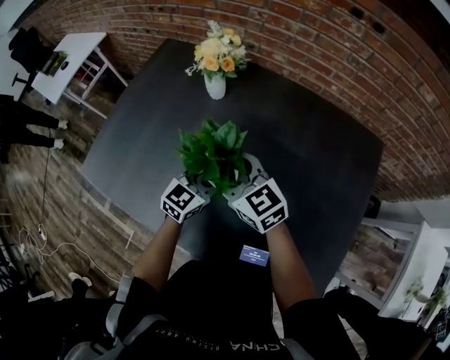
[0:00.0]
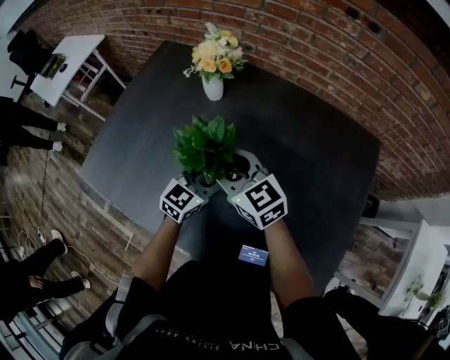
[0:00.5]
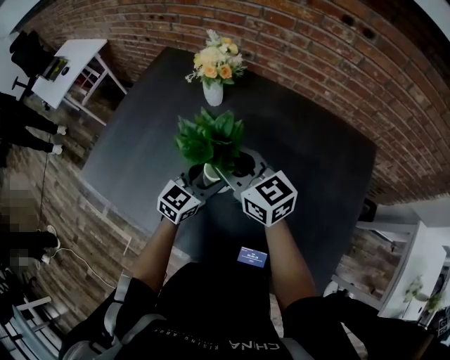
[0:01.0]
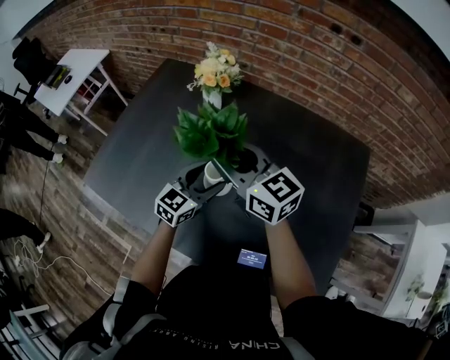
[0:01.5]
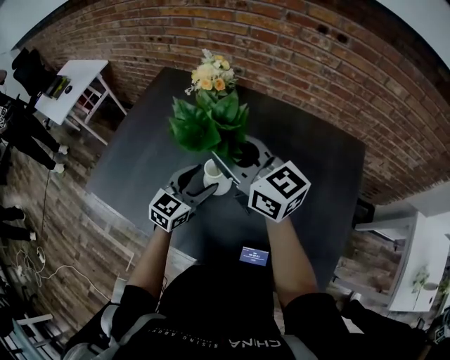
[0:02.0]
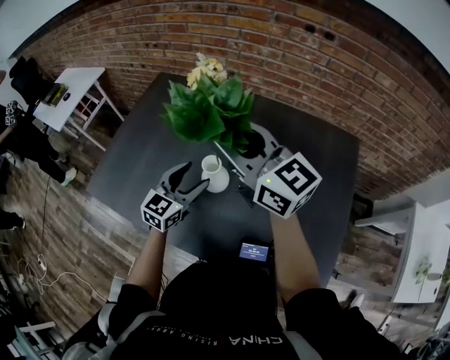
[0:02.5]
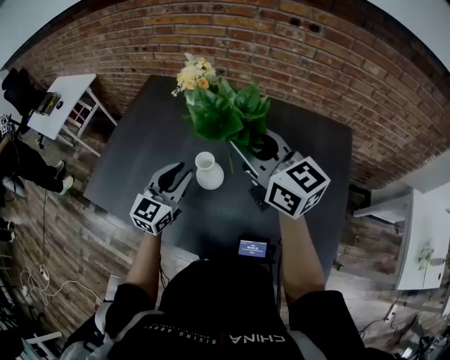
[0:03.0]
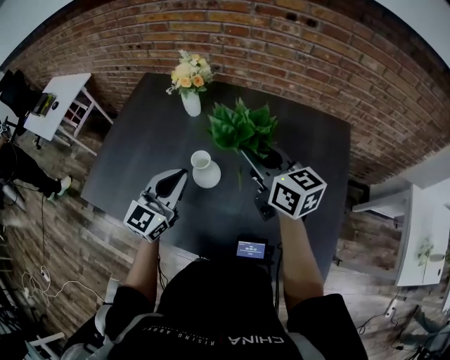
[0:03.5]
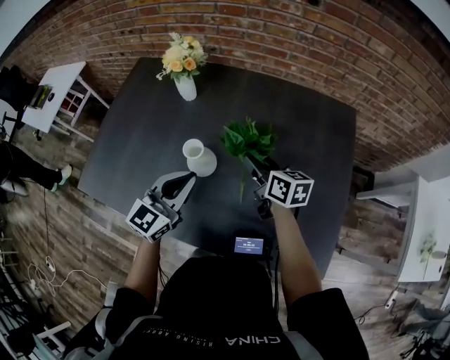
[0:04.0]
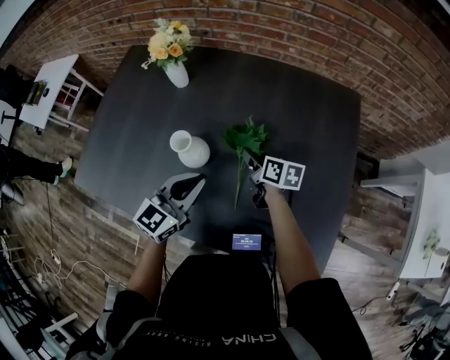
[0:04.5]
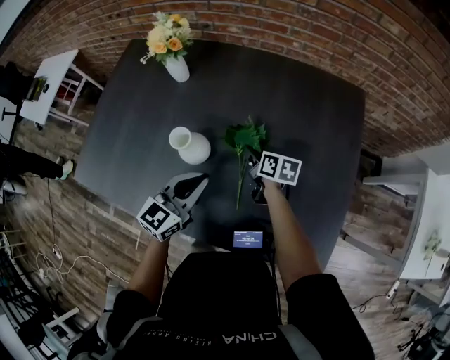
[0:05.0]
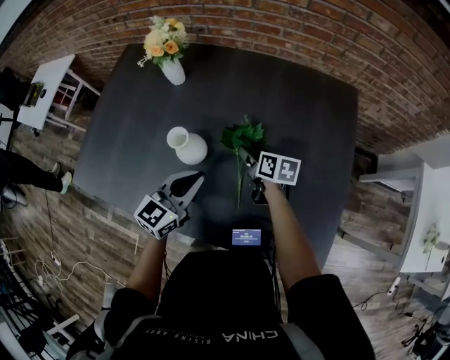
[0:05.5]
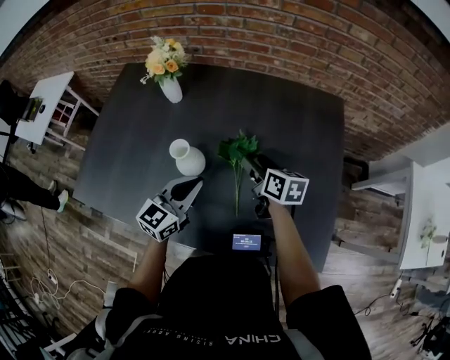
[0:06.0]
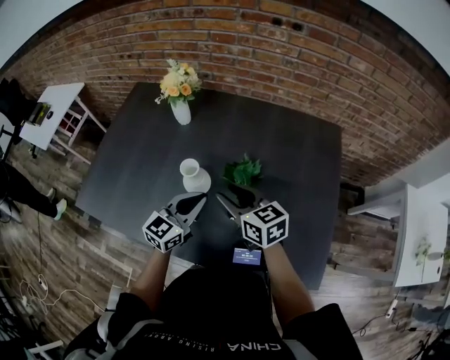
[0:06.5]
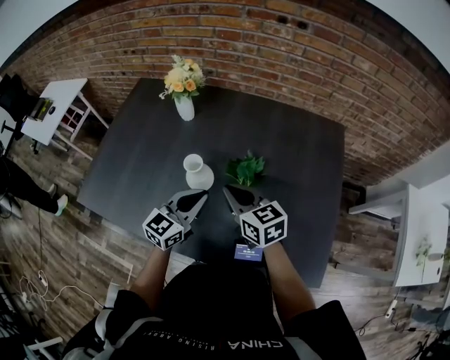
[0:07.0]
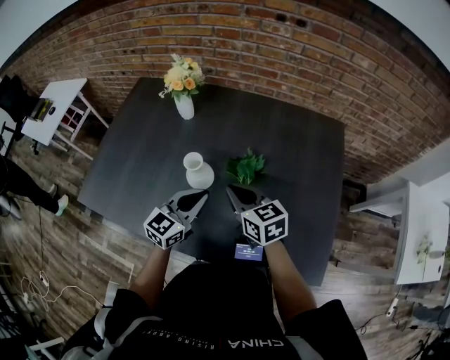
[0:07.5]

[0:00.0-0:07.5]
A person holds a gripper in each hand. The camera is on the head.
0:00.0 to 0:02.0: The left gripper shifts by some 5 cm, while the right gripper shifts approximately 15 cm upward, rotates about 20 degrees, and closes up.
0:02.0 to 0:04.0: The right gripper travels downward and to the right by some 25 cm, and turns by some 40 degrees, while the left gripper goes some 10 cm backward and upward, and closes its fingers.
0:04.0 to 0:05.5: The left gripper is displaced downward by some 5 cm. Meanwhile the right gripper is displaced downward by roughly 10 cm, and opens up.
0:05.5 to 0:07.5: The right gripper shifts some 20 cm upward, backward and to the left, changes its angle by roughly 40 degrees, and closes up.

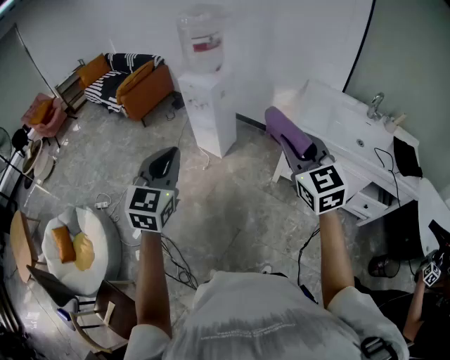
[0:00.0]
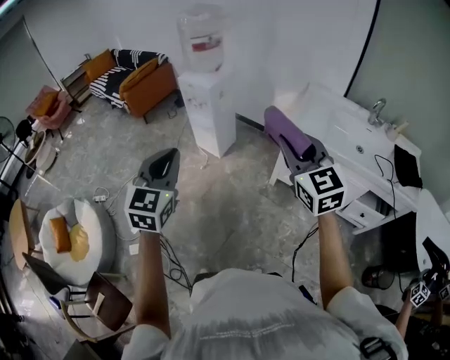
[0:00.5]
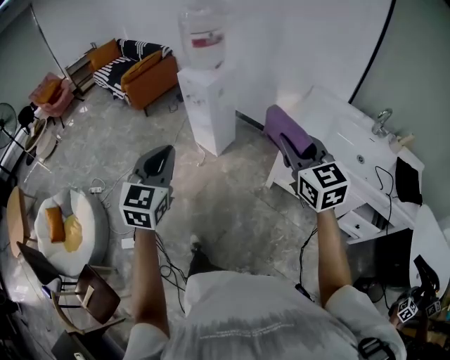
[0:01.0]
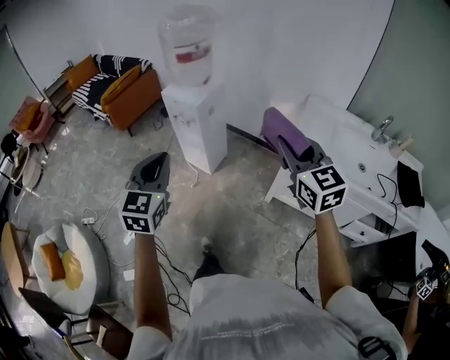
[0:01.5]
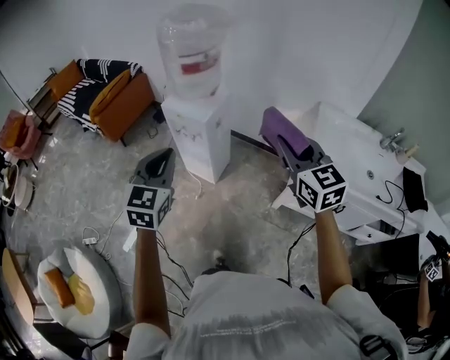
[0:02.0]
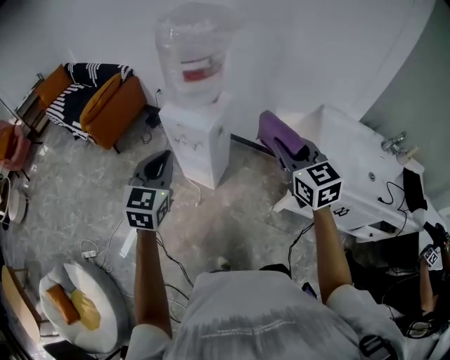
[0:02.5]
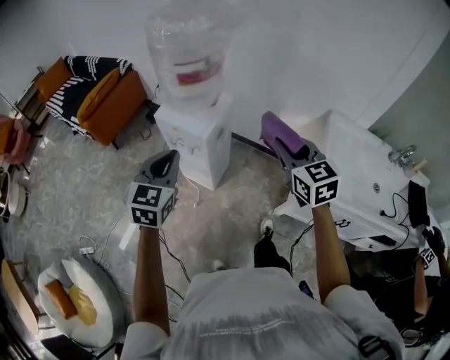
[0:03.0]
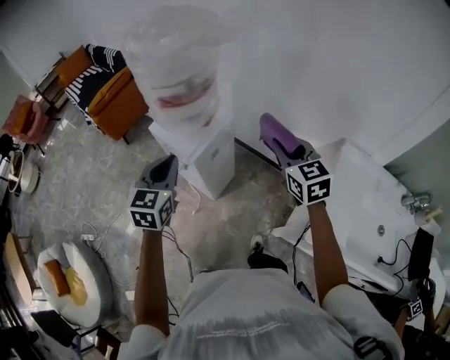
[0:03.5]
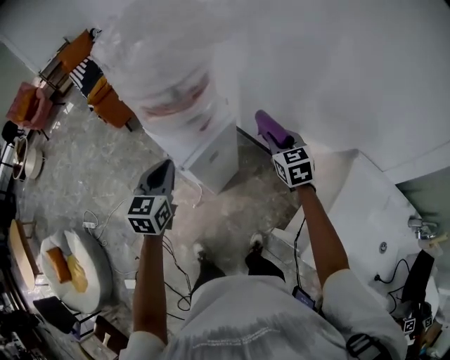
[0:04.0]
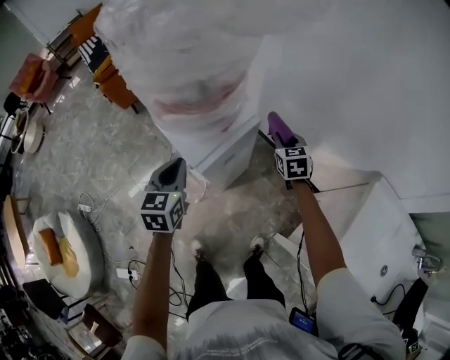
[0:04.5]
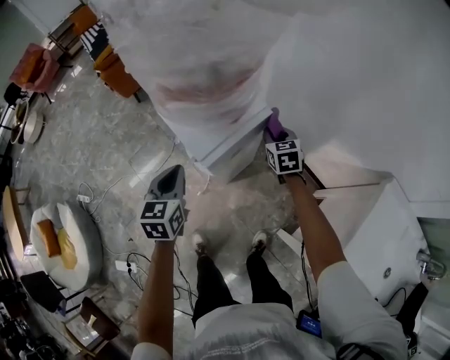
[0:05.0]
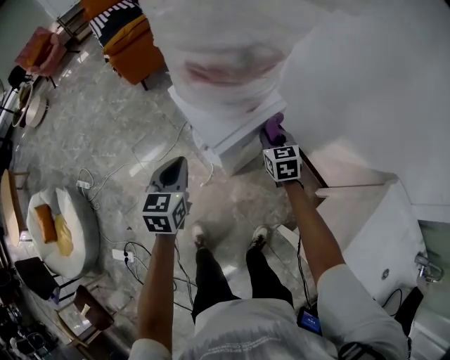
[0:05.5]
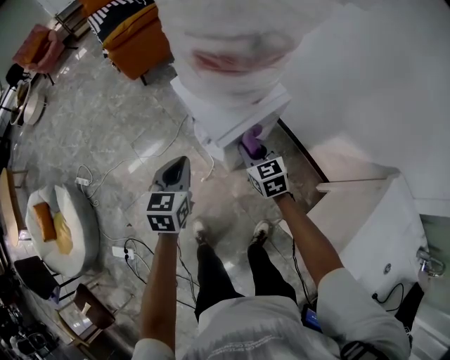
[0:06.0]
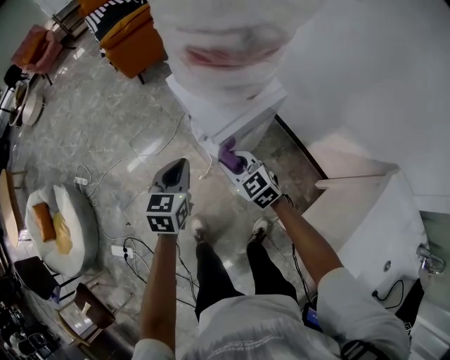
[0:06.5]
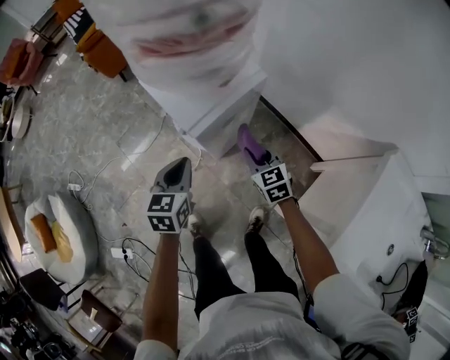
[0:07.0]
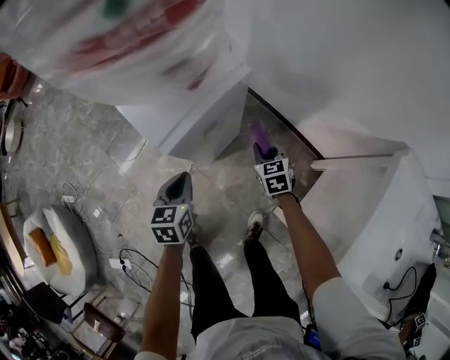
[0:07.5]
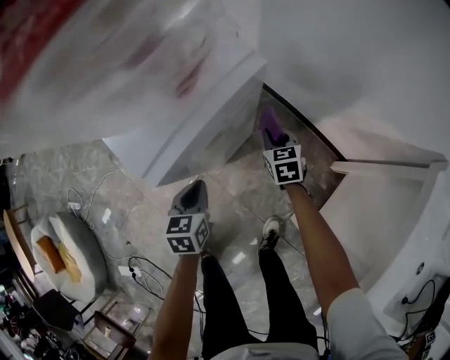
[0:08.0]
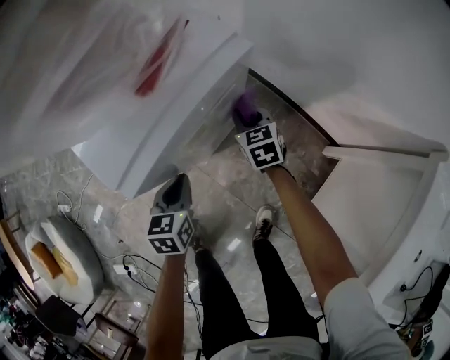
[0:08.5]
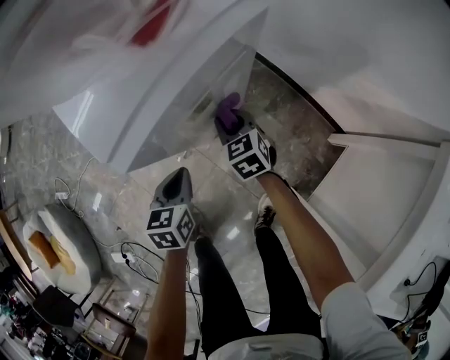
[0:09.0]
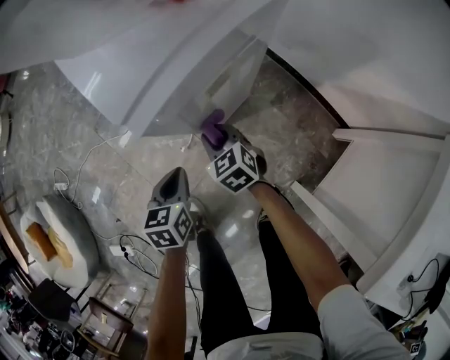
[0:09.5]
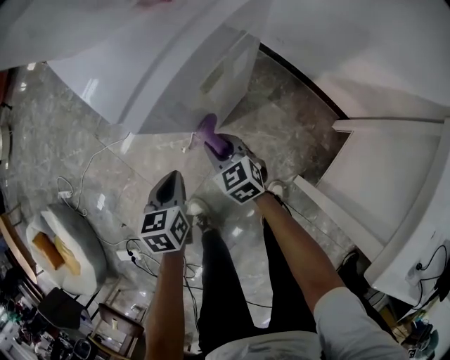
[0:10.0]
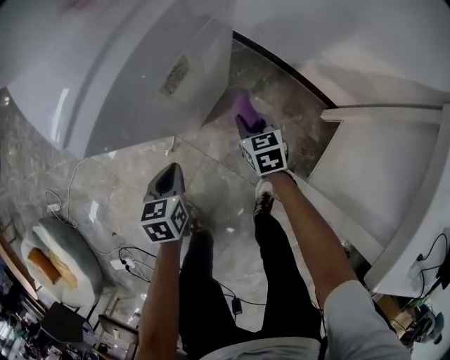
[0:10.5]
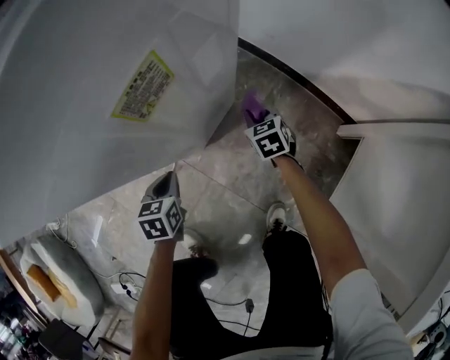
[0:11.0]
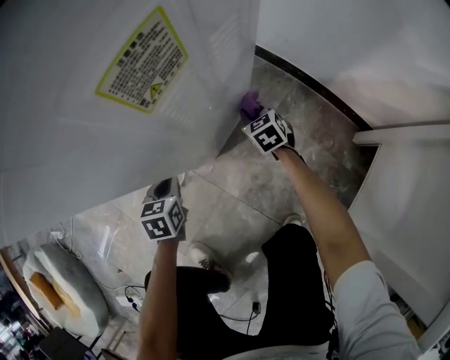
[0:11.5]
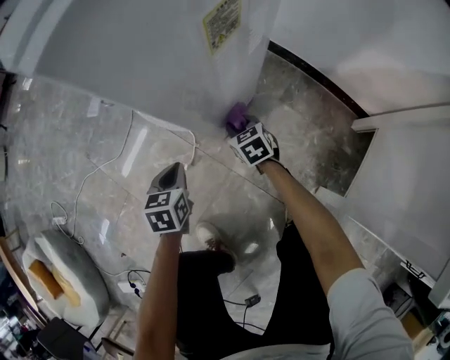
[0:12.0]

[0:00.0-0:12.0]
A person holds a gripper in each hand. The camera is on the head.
0:00.0 to 0:02.0: The grippers both shift forward by some 35 cm.
0:02.0 to 0:04.0: The left gripper moves forward, about 30 cm, and turns by approximately 30 degrees. The right gripper moves forward and downward, roughly 50 cm, and swivels some 20 degrees.
0:04.0 to 0:06.0: The right gripper heads to the left and downward, covering approximately 30 cm. The left gripper moves downward and to the left, roughly 20 cm.
0:06.0 to 0:08.0: Both grippers move downward and to the right, about 30 cm. The right gripper changes its angle by about 20 degrees.
0:08.0 to 0:10.0: The left gripper is displaced to the left and backward by about 10 cm; the right gripper travels to the left and backward by approximately 25 cm, and swivels some 20 degrees.
0:10.0 to 0:12.0: The two grippers go approximately 20 cm downward.

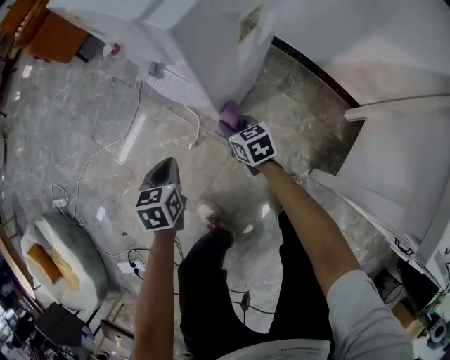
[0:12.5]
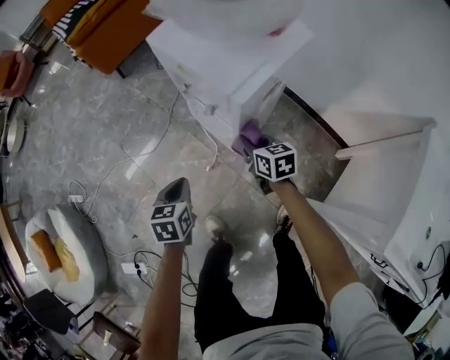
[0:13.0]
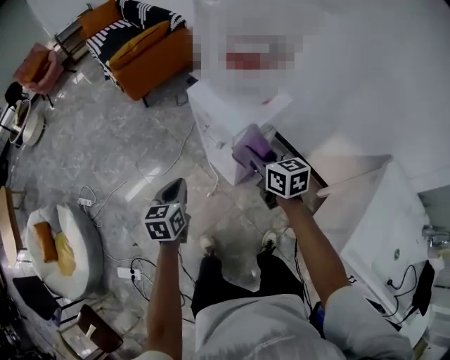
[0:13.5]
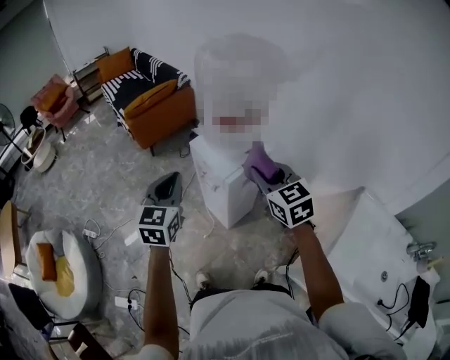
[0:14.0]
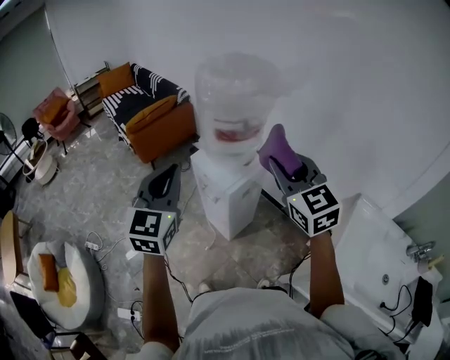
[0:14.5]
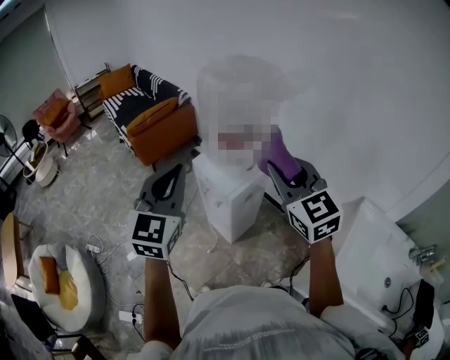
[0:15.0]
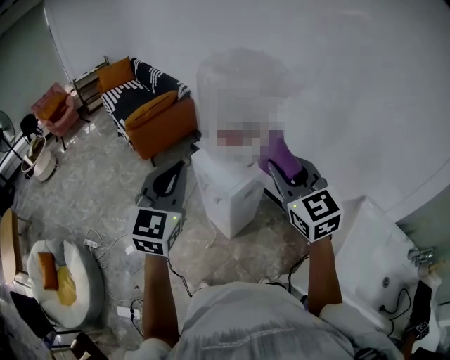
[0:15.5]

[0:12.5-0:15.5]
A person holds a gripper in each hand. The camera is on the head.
0:12.5 to 0:14.0: Both grippers travel together upward, approximately 70 cm. The right gripper changes its angle by roughly 40 degrees; the left gripper tilts its fingers about 40 degrees upward.
0:14.0 to 0:15.5: The two grippers go roughly 10 cm upward.

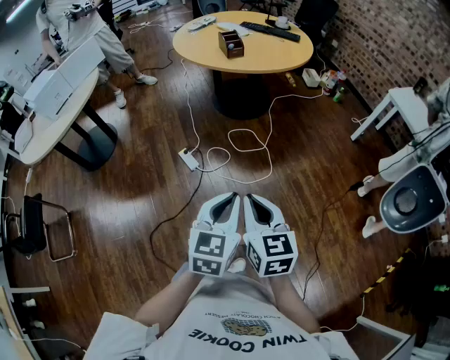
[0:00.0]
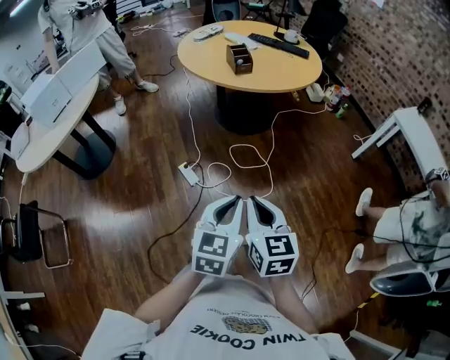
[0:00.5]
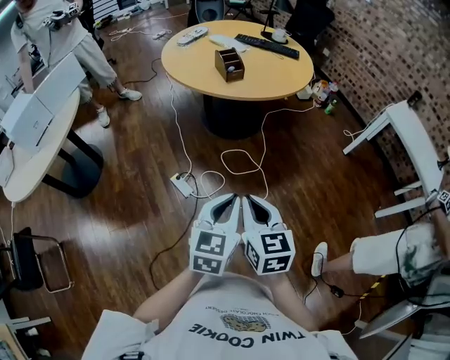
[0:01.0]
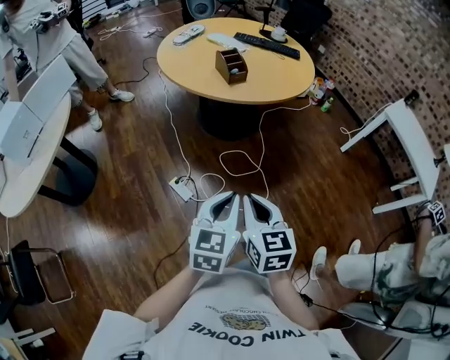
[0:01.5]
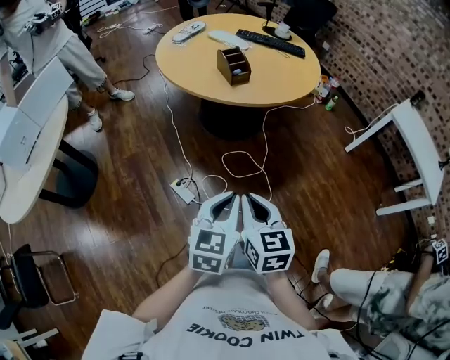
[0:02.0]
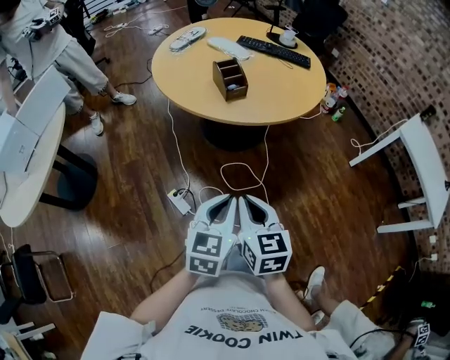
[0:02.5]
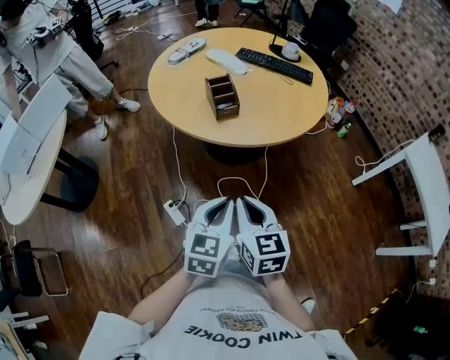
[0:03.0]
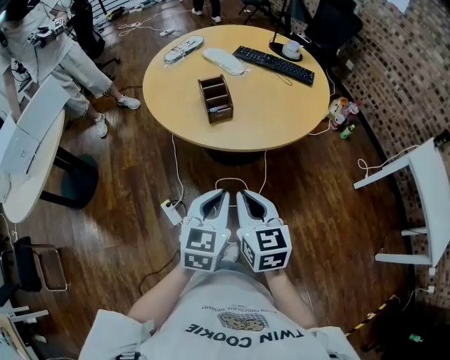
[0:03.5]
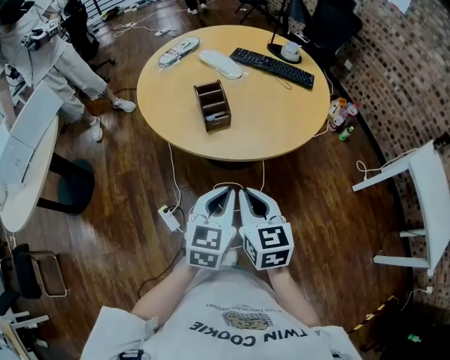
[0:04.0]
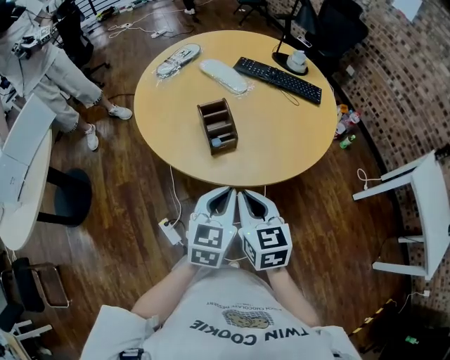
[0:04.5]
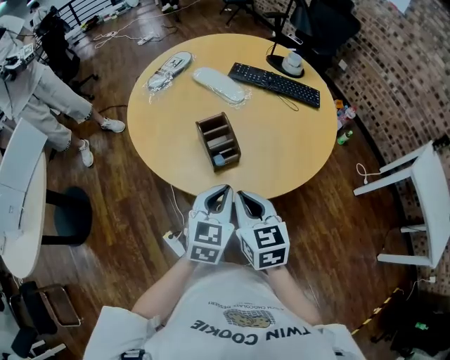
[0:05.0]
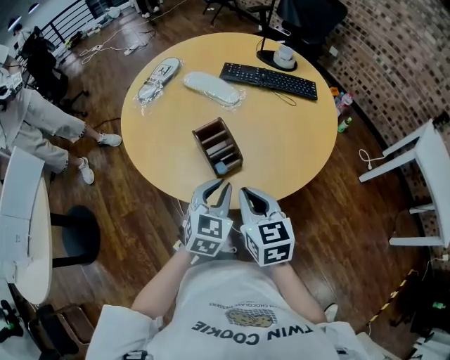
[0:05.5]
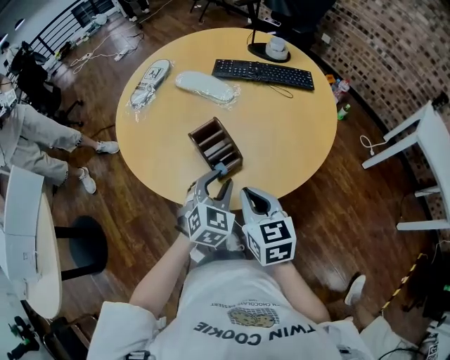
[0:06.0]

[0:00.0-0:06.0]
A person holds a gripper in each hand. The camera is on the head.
0:00.0 to 0:02.0: Both grippers travel together forward and to the left, roughly 30 cm.
0:02.0 to 0:04.0: Both grippers move forward and to the right, approximately 35 cm.
0:04.0 to 0:06.0: The right gripper goes some 20 cm forward and to the left, while the left gripper heads forward, covering some 25 cm, swivels some 40 degrees, and opens up.
